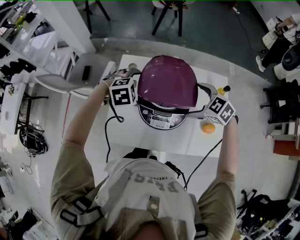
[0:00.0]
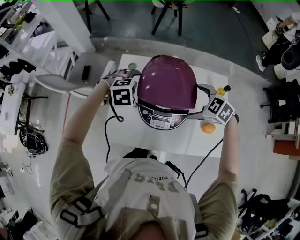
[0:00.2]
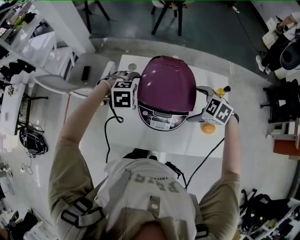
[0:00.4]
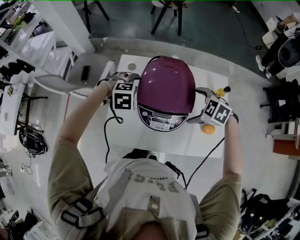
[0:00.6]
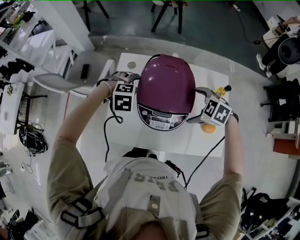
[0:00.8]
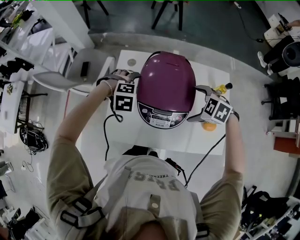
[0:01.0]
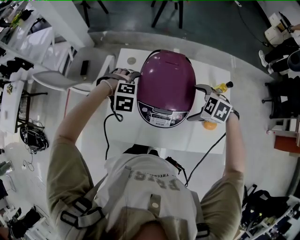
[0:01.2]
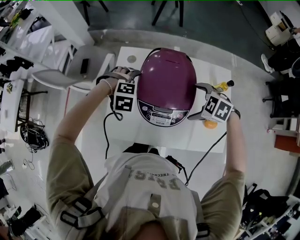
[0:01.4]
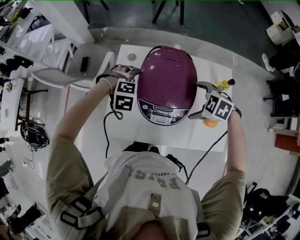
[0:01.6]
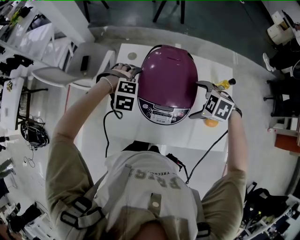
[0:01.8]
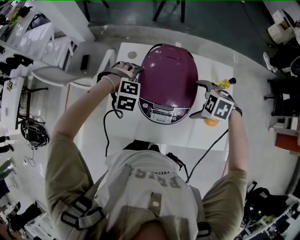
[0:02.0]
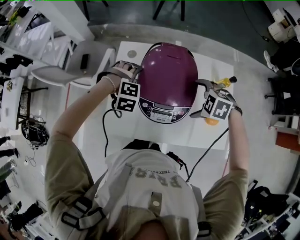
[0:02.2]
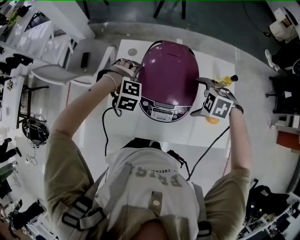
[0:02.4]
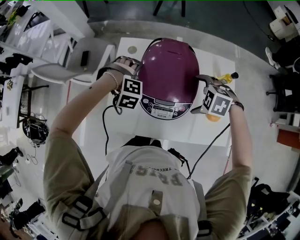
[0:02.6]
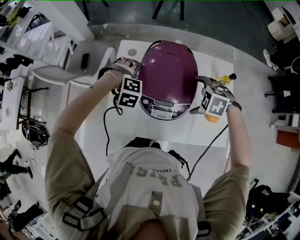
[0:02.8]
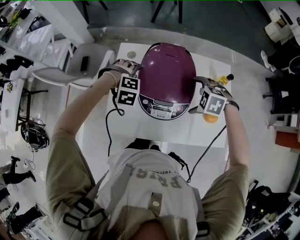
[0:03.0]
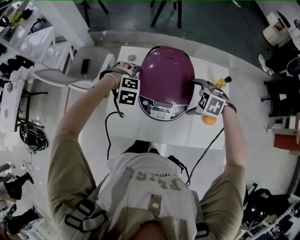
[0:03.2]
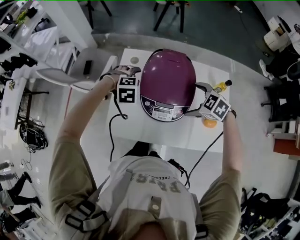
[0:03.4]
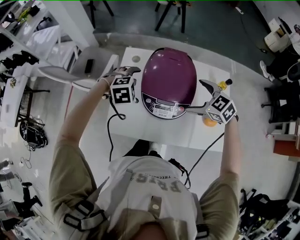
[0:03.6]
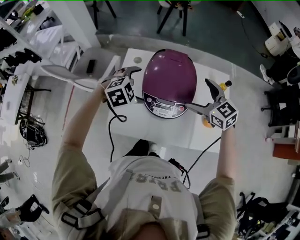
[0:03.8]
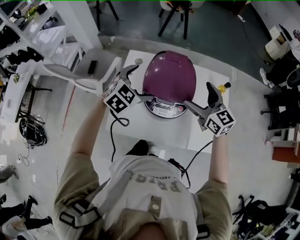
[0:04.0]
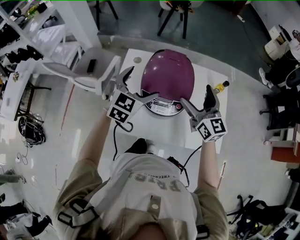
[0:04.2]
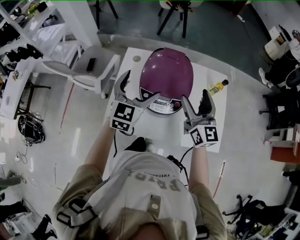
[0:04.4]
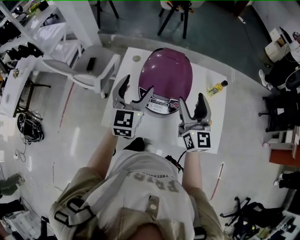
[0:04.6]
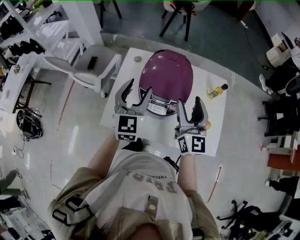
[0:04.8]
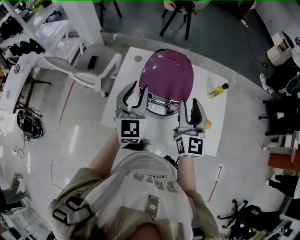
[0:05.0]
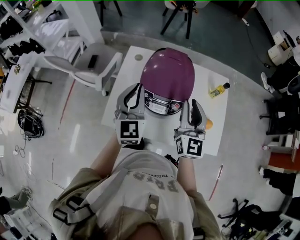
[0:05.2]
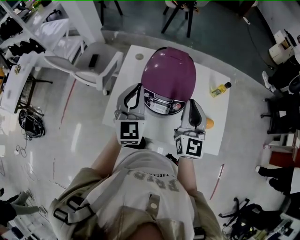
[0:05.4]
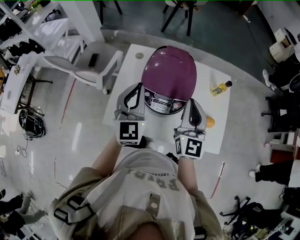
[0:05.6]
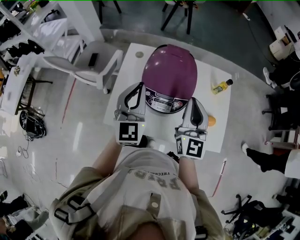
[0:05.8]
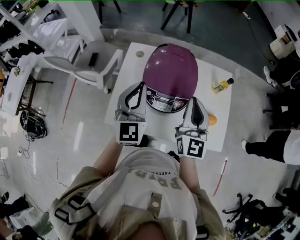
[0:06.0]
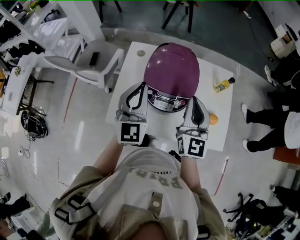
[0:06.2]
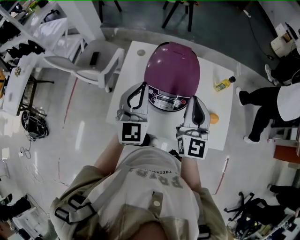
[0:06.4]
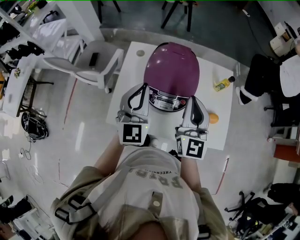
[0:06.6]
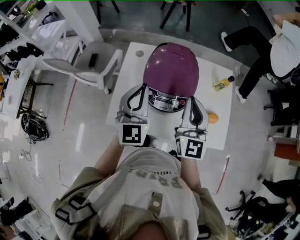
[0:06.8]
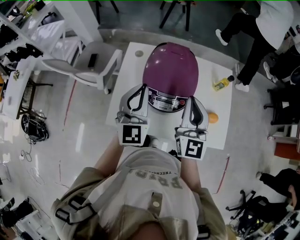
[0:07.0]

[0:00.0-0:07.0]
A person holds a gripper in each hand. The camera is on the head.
0:00.0 to 0:01.4: The left gripper ends up about 5 cm from where it was, and swivels approximately 20 degrees.
0:01.4 to 0:02.8: The grippers move only a little.
0:02.8 to 0:04.2: The two grippers go some 15 cm upward. The right gripper tilts its fingers about 70 degrees upward. The left gripper angles its fingers upward, by about 60 degrees.
0:04.2 to 0:05.6: The two grippers go some 5 cm backward. The right gripper rotates roughly 20 degrees, and closes up. Meanwhile the left gripper changes its angle by some 30 degrees, and closes.
0:05.6 to 0:07.0: The grippers make only small movements.

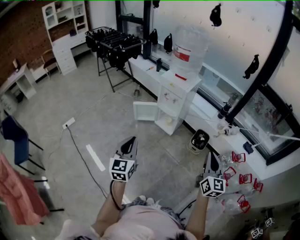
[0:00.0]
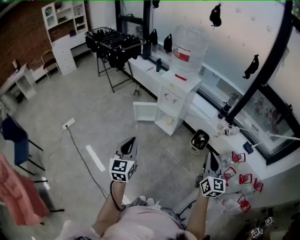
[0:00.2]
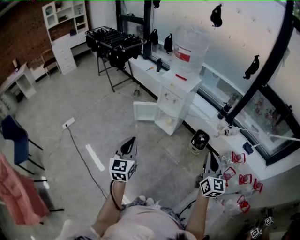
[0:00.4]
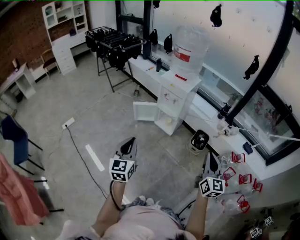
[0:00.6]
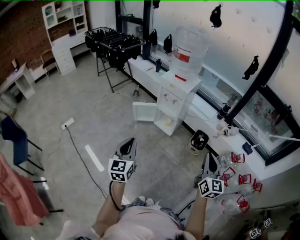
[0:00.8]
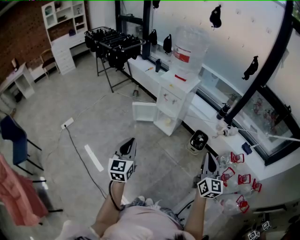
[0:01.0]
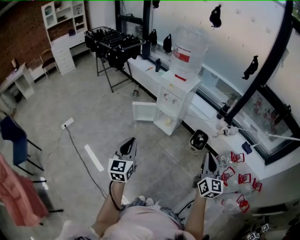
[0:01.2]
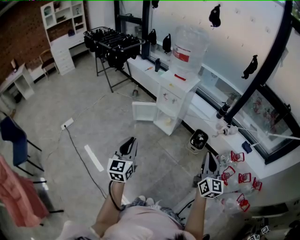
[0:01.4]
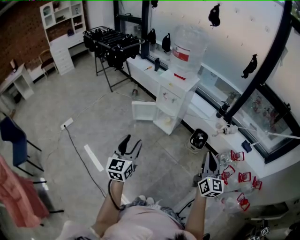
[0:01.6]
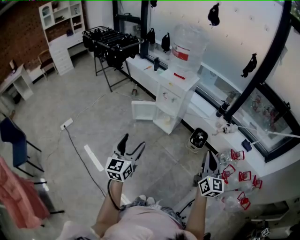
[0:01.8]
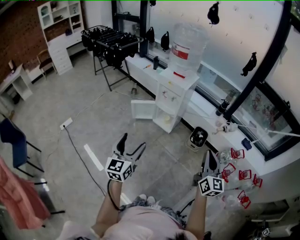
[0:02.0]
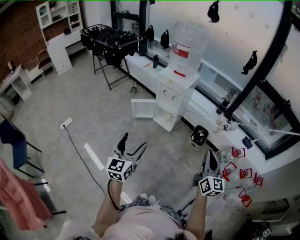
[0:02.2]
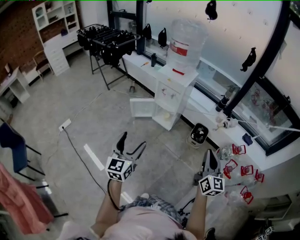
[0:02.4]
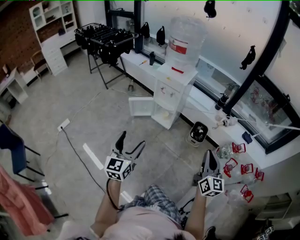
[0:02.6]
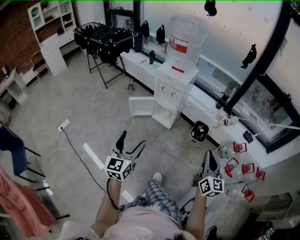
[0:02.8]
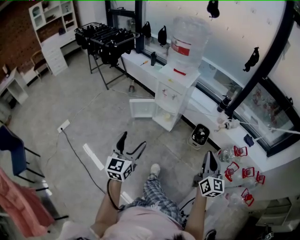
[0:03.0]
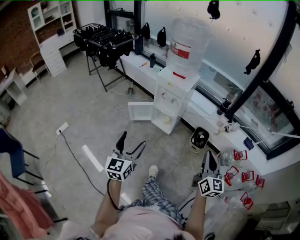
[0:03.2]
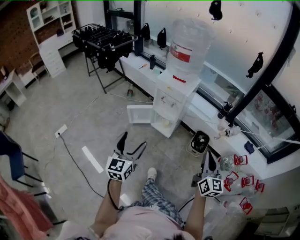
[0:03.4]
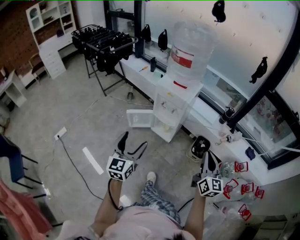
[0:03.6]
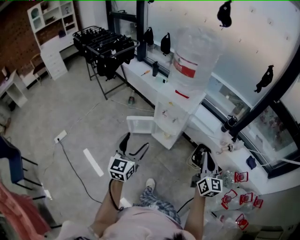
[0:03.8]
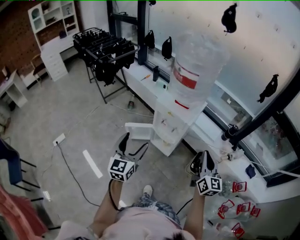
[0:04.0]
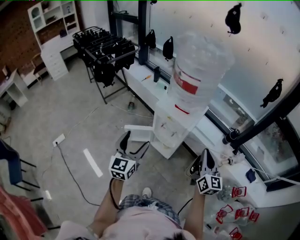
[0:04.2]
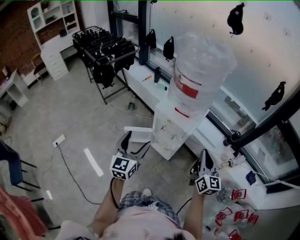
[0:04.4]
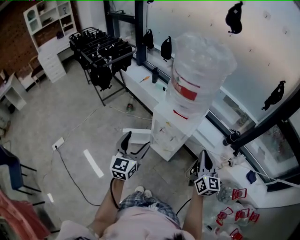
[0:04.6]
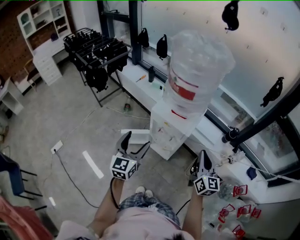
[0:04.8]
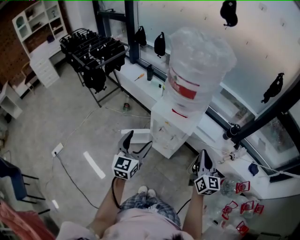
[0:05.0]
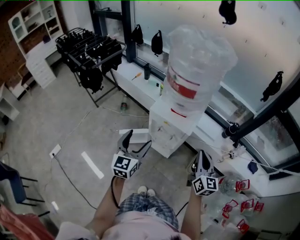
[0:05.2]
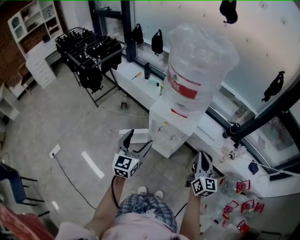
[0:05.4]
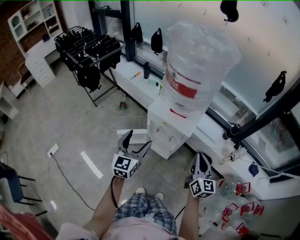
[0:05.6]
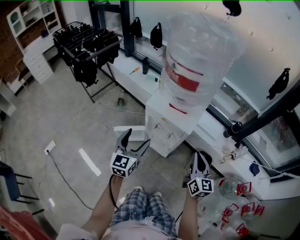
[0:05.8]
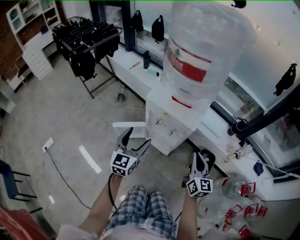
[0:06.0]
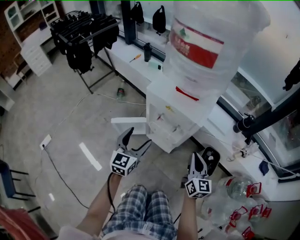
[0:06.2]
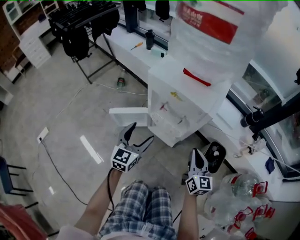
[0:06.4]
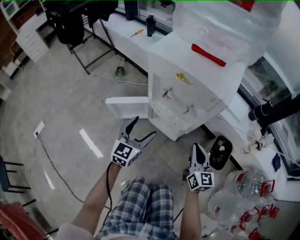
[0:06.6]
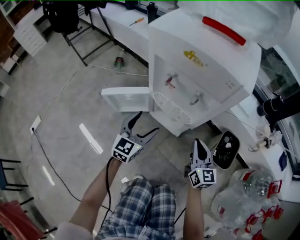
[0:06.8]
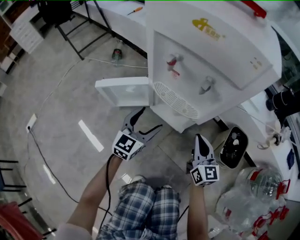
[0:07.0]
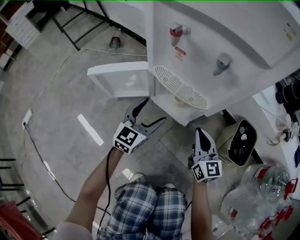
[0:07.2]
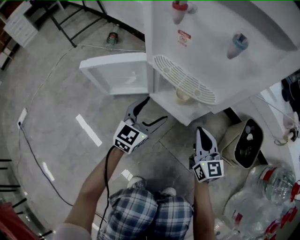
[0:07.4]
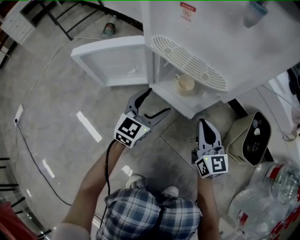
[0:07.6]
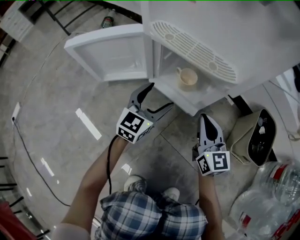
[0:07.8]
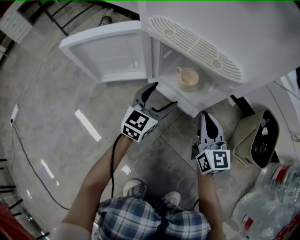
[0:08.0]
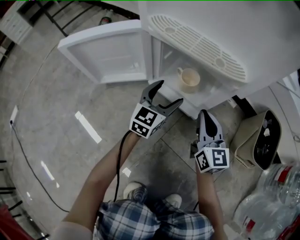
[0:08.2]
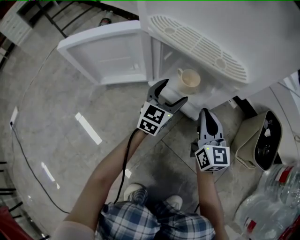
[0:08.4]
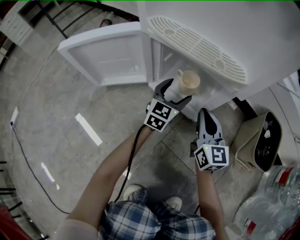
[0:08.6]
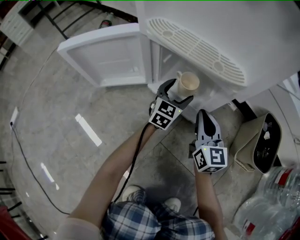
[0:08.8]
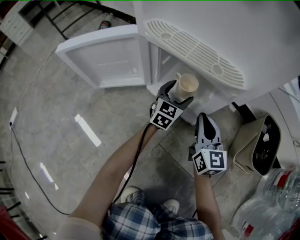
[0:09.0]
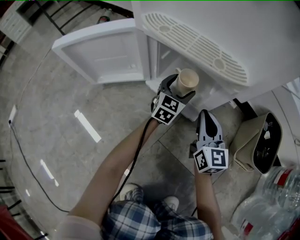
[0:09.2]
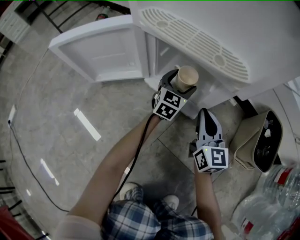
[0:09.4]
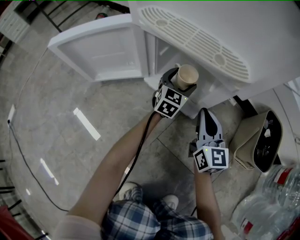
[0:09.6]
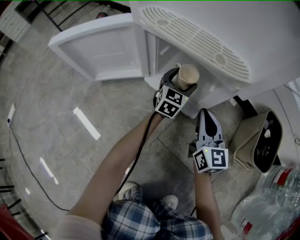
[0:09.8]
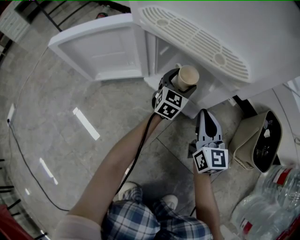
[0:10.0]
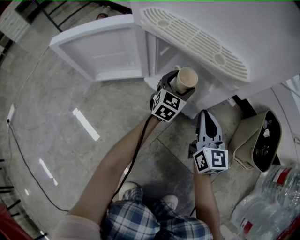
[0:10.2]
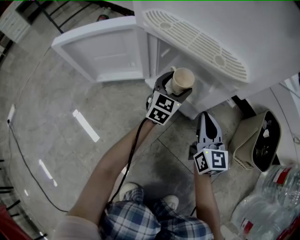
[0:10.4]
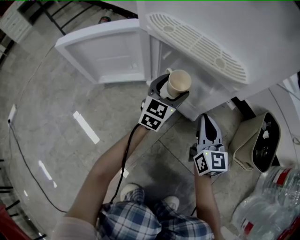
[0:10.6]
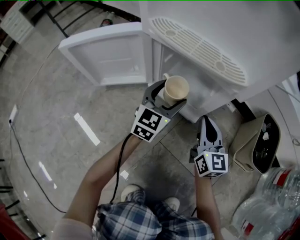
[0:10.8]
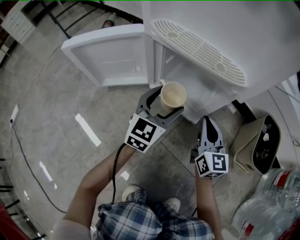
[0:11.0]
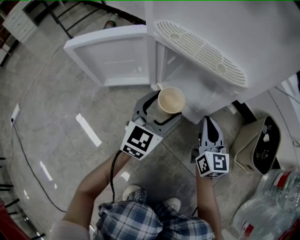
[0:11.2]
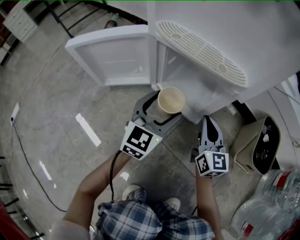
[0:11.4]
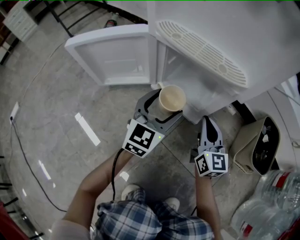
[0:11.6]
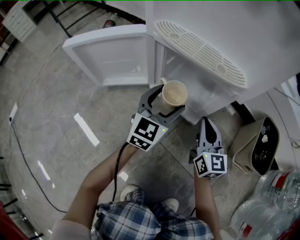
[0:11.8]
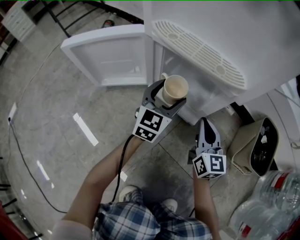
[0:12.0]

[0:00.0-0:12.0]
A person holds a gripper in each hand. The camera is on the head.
0:00.0 to 0:01.6: The left gripper opens up.
0:01.6 to 0:03.0: The left gripper heads forward, covering roughly 5 cm, and opens up. The right gripper changes place by about 5 cm.
0:03.0 to 0:04.4: Both grippers travel together forward, approximately 40 cm.
0:04.4 to 0:06.0: The right gripper travels downward by approximately 20 cm; the left gripper heads downward and forward, covering roughly 20 cm.
0:06.0 to 0:07.6: The grippers both shift downward by some 60 cm.
0:07.6 to 0:09.0: The right gripper goes approximately 10 cm downward and forward. Meanwhile the left gripper goes some 20 cm downward, forward and to the right.
0:09.0 to 0:10.4: The grippers move only a little.
0:10.4 to 0:12.0: The left gripper heads upward and backward, covering roughly 10 cm.

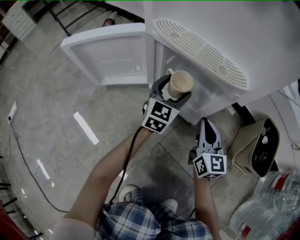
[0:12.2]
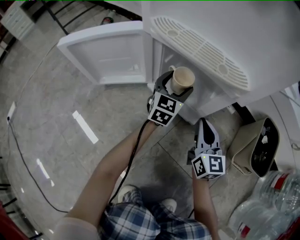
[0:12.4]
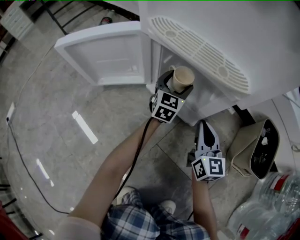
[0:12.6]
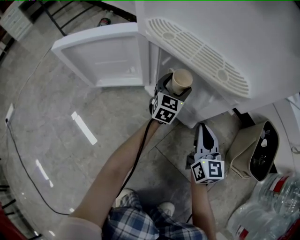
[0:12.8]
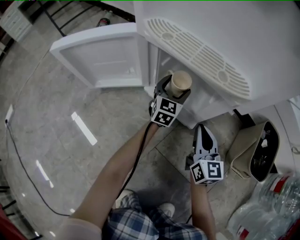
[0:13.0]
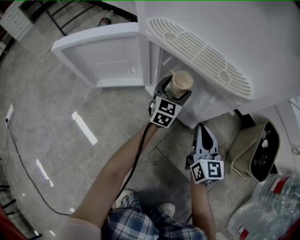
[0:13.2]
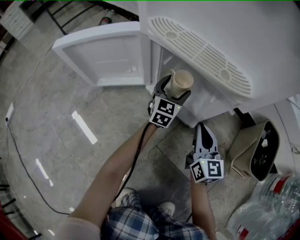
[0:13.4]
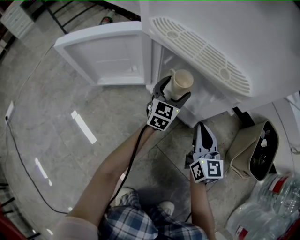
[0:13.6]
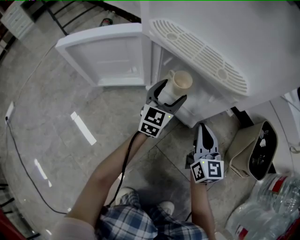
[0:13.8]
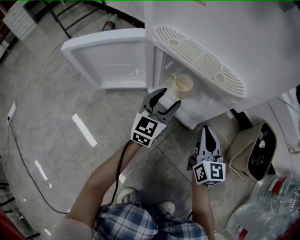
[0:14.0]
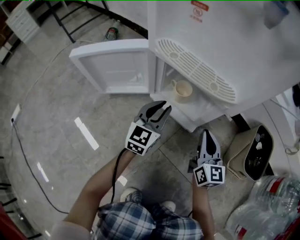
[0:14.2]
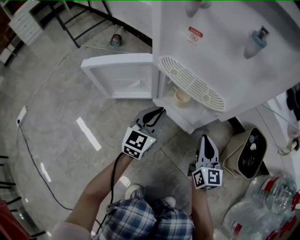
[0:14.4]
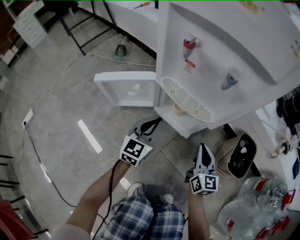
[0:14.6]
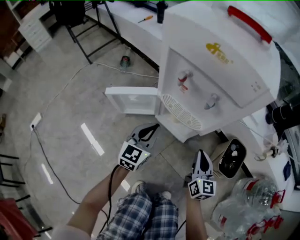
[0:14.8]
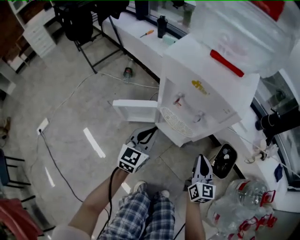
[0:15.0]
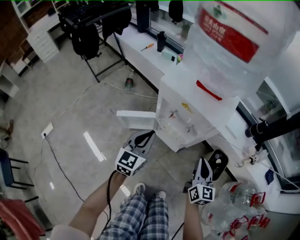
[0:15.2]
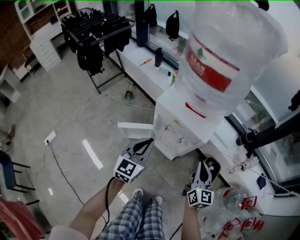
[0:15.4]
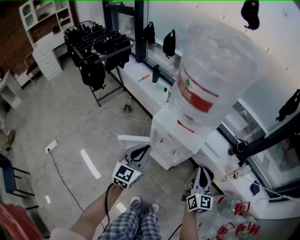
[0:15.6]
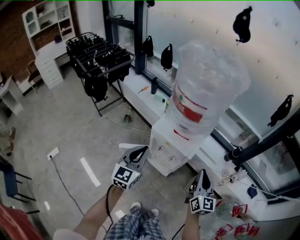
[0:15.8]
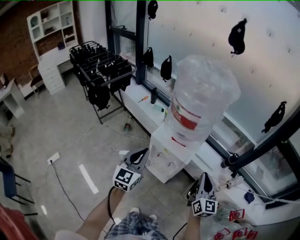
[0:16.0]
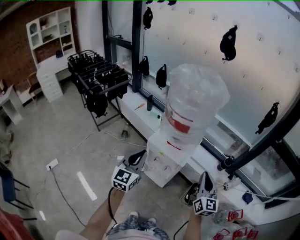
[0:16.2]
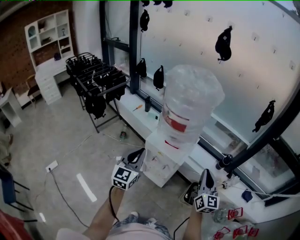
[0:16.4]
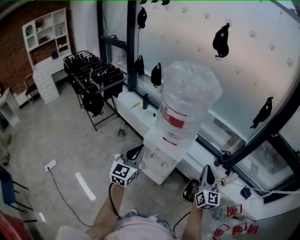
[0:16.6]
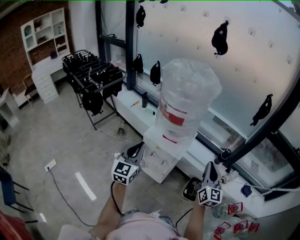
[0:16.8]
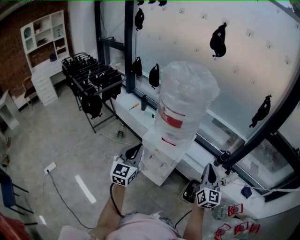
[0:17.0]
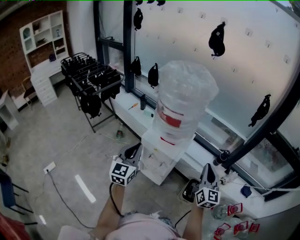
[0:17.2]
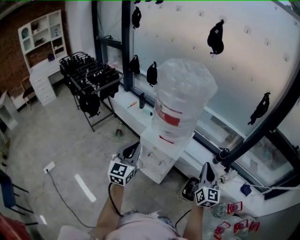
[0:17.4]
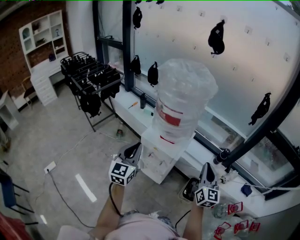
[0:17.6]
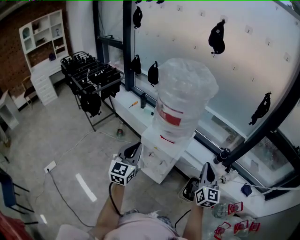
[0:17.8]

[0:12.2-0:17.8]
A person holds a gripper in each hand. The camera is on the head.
0:12.2 to 0:13.6: The left gripper moves downward, some 5 cm.
0:13.6 to 0:15.0: Both grippers travel together upward, approximately 40 cm. The left gripper closes its fingers.
0:15.0 to 0:16.4: The two grippers go approximately 50 cm upward.
0:16.4 to 0:17.8: The grippers stay close to where they were, moving slightly.
